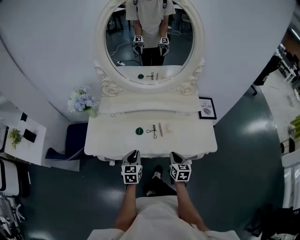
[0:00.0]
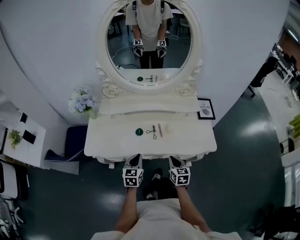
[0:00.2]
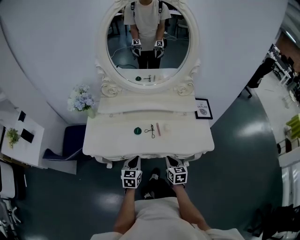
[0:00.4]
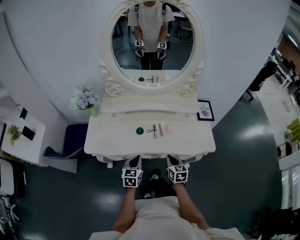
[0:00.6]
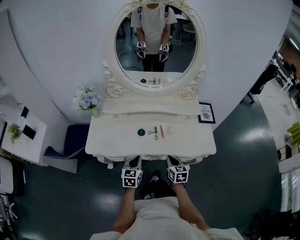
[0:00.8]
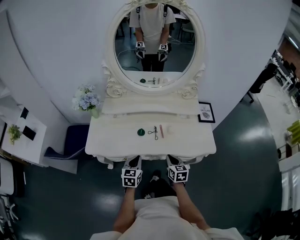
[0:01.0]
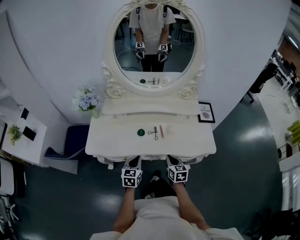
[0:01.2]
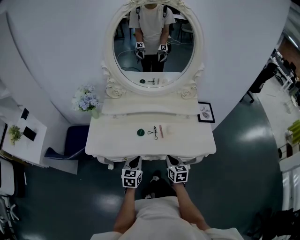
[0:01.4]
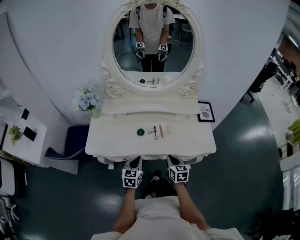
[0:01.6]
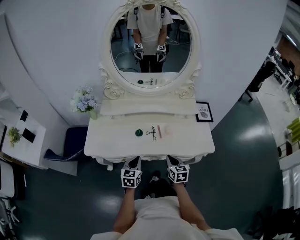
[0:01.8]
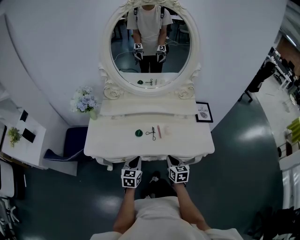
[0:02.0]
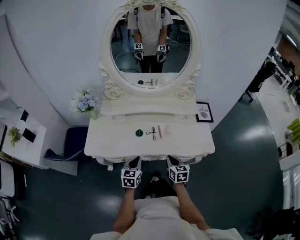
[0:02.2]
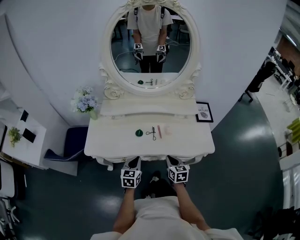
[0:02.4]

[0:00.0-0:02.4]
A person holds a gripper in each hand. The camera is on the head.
0.0 to 2.4 s: There are only small adjustments of the grippers.

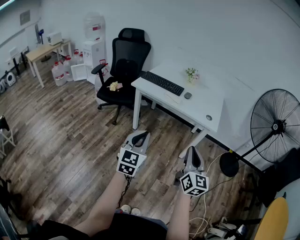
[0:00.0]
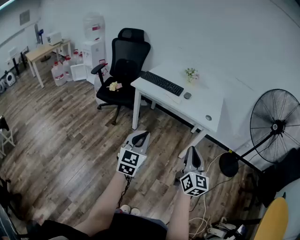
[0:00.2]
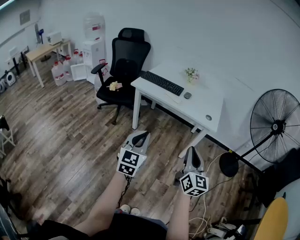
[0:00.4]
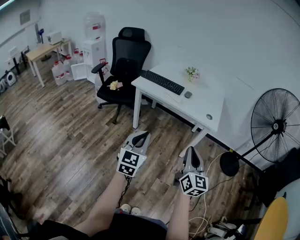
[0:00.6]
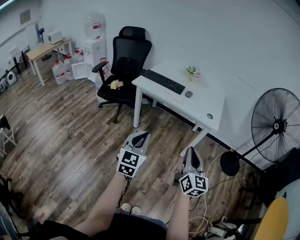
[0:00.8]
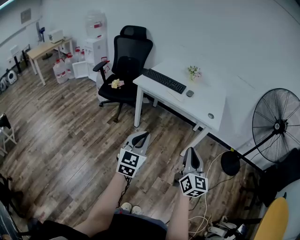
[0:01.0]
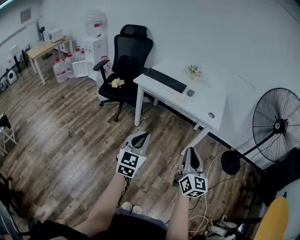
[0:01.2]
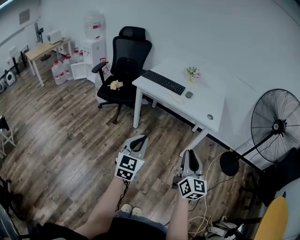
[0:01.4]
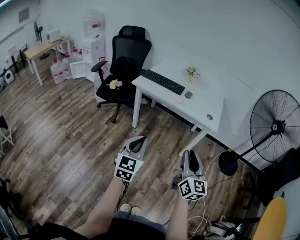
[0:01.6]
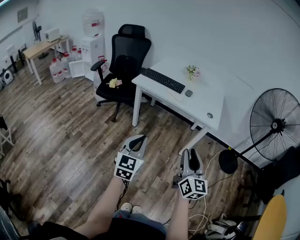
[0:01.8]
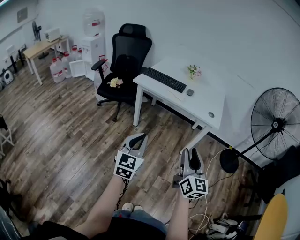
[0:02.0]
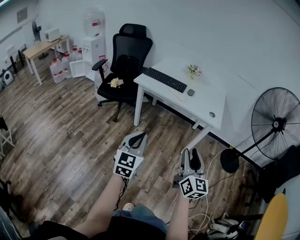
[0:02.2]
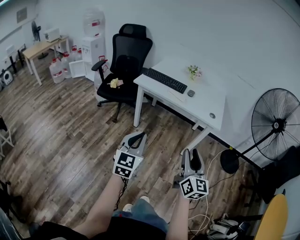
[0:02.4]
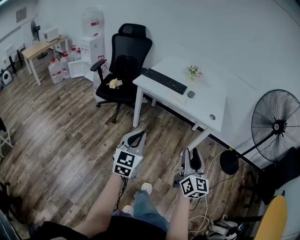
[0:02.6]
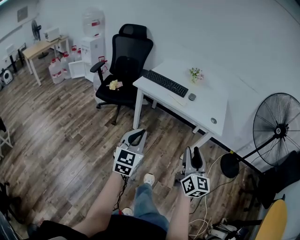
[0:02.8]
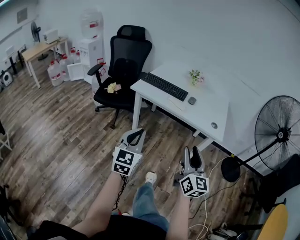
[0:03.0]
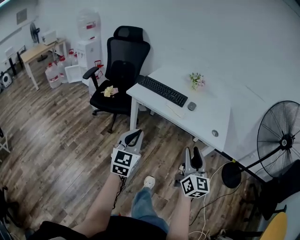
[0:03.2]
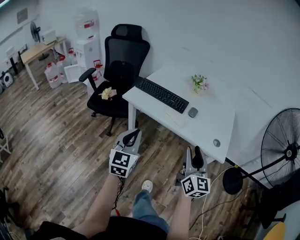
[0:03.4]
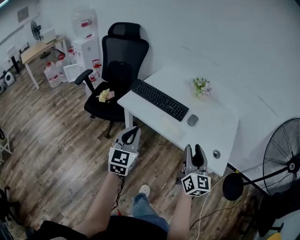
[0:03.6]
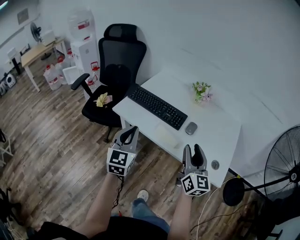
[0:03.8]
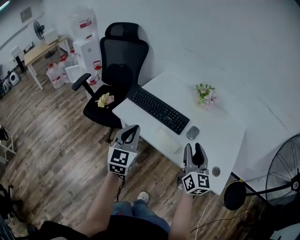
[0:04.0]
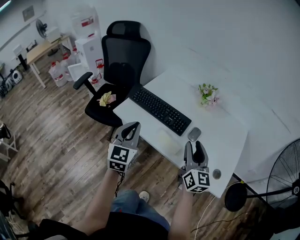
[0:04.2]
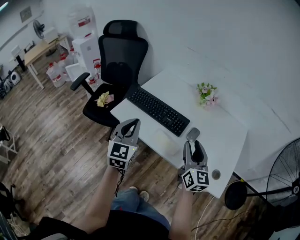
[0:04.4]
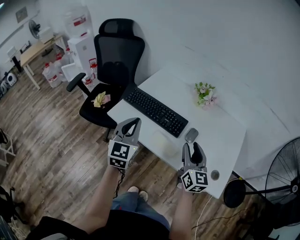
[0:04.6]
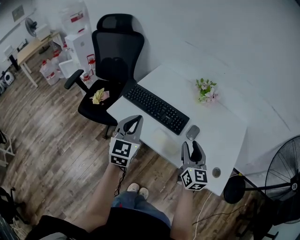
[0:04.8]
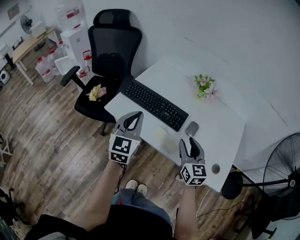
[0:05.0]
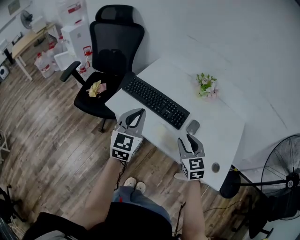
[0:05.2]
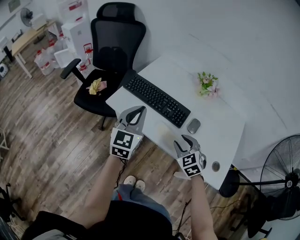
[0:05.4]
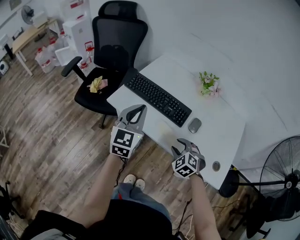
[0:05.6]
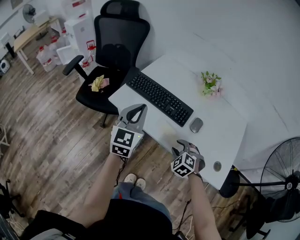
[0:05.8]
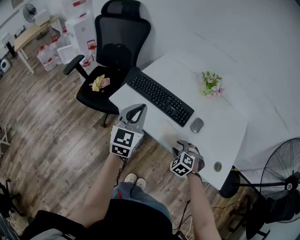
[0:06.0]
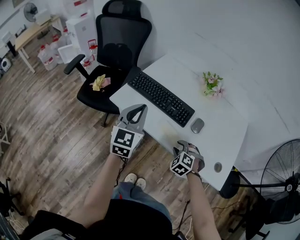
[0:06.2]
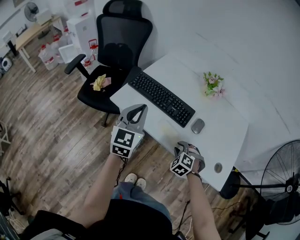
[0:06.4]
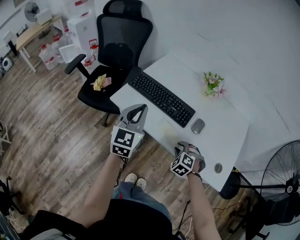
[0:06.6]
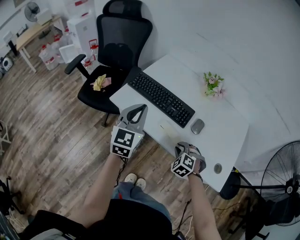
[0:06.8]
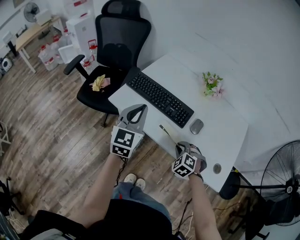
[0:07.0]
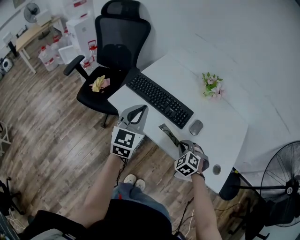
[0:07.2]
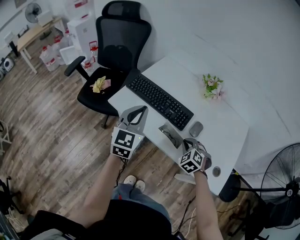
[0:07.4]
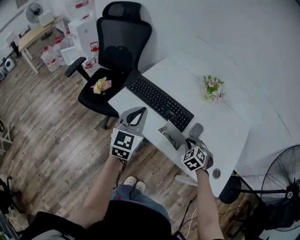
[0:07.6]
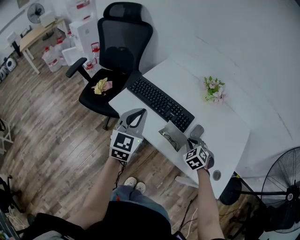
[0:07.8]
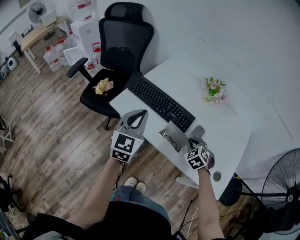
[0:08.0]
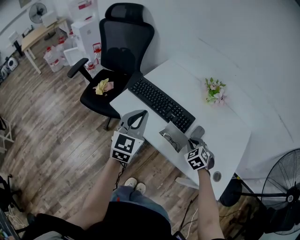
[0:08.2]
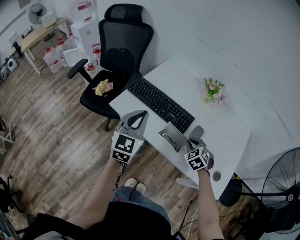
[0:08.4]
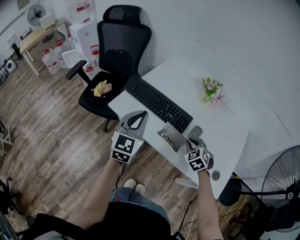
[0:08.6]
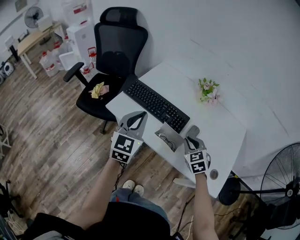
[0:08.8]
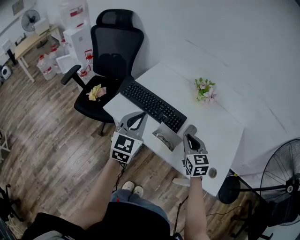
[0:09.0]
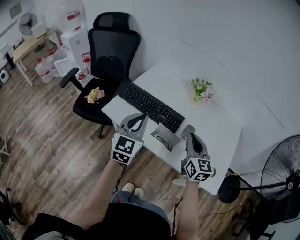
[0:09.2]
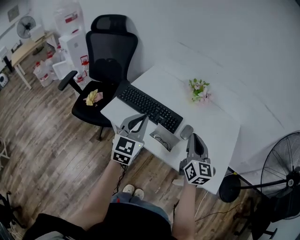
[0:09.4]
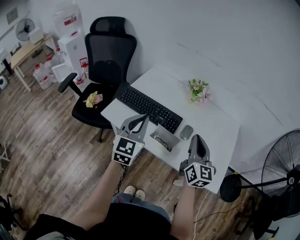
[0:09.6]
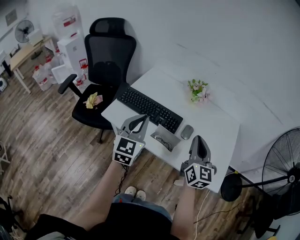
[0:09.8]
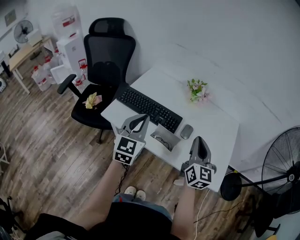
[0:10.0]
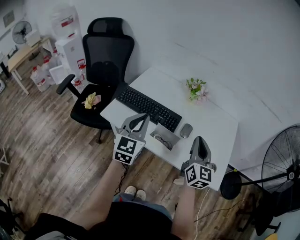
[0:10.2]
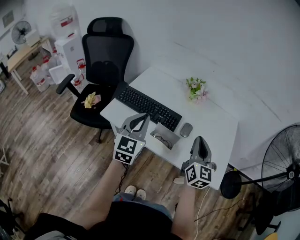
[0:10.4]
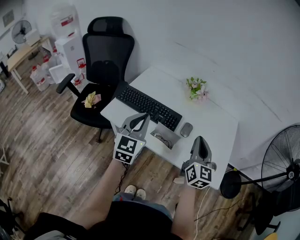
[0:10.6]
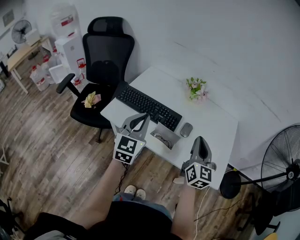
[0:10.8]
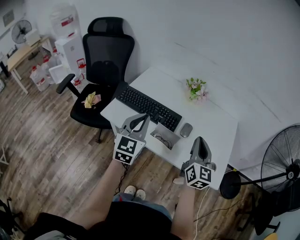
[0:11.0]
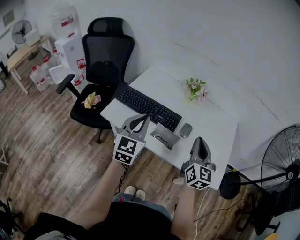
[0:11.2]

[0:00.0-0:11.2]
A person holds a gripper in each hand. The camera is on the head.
0.0 to 1.6 s: The grippers move only a little.
1.6 to 3.2 s: Both grippers move forward, approximately 20 cm.
3.2 to 4.8 s: Both grippers are carried forward, roughly 40 cm.
4.8 to 6.4 s: The right gripper goes approximately 20 cm downward, and angles its fingers downward, by approximately 50 degrees.
6.4 to 8.0 s: The right gripper is displaced forward and to the right by about 10 cm, and closes.
8.0 to 9.6 s: The right gripper shifts about 20 cm upward, and tips its fingers upward by some 50 degrees, while the left gripper ends up roughly 5 cm from where it was.
9.6 to 11.2 s: The grippers make only small movements.

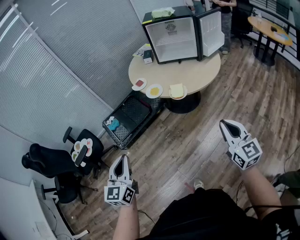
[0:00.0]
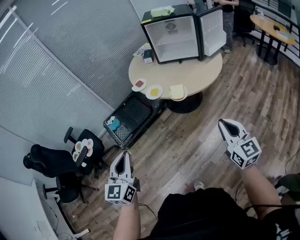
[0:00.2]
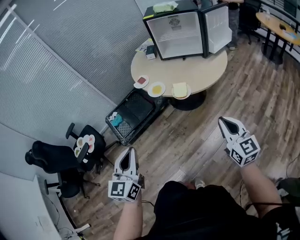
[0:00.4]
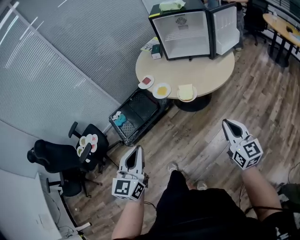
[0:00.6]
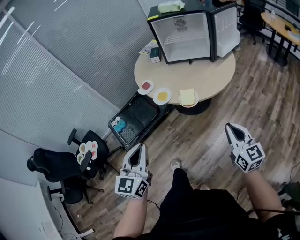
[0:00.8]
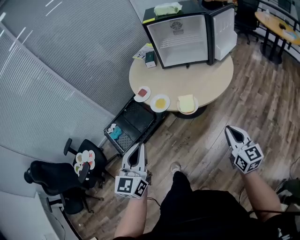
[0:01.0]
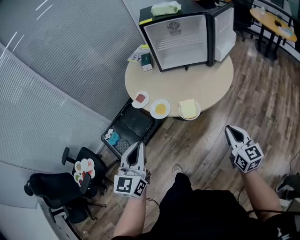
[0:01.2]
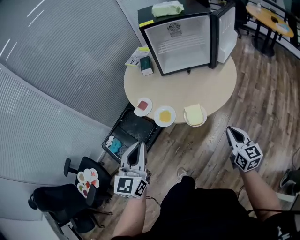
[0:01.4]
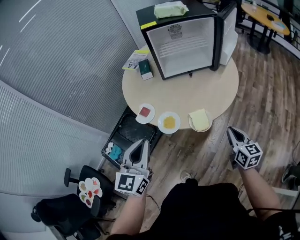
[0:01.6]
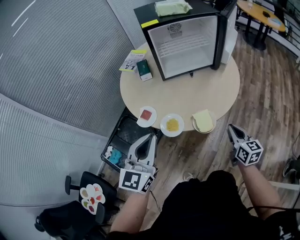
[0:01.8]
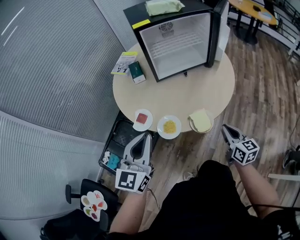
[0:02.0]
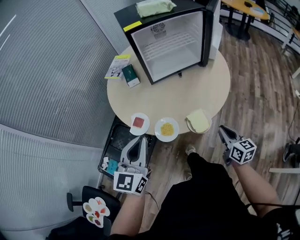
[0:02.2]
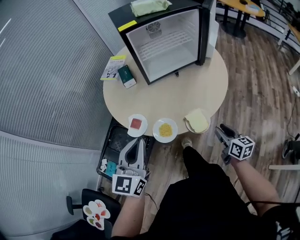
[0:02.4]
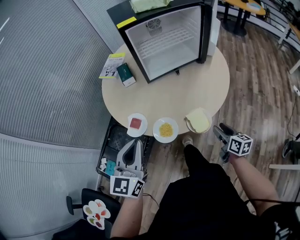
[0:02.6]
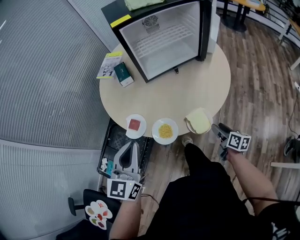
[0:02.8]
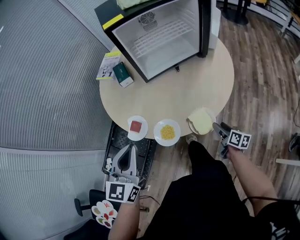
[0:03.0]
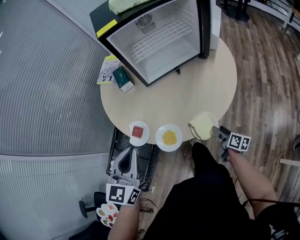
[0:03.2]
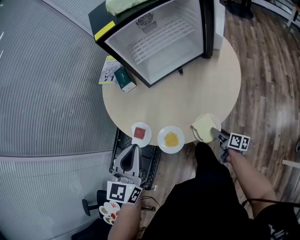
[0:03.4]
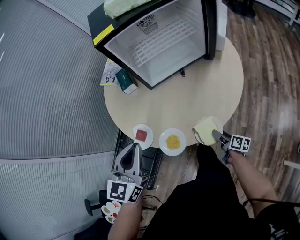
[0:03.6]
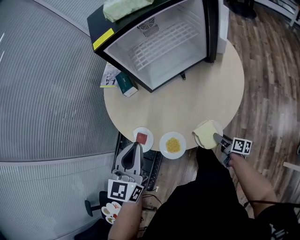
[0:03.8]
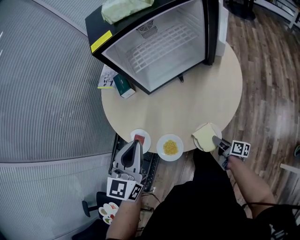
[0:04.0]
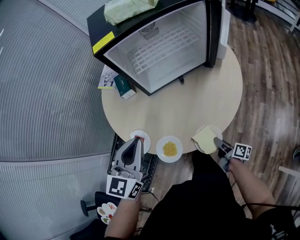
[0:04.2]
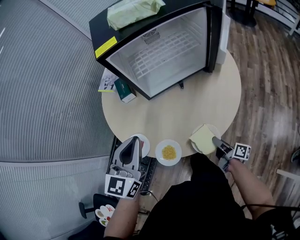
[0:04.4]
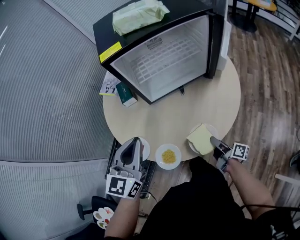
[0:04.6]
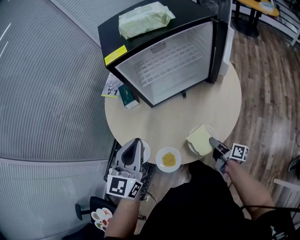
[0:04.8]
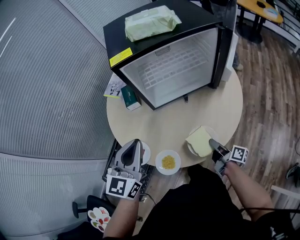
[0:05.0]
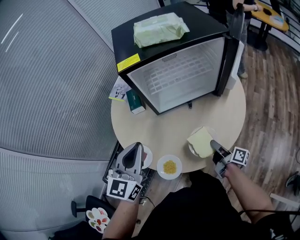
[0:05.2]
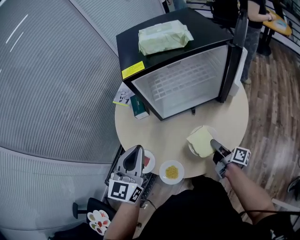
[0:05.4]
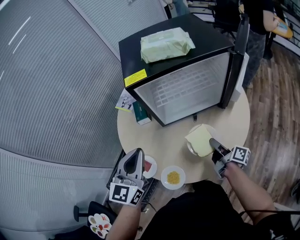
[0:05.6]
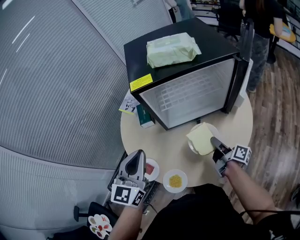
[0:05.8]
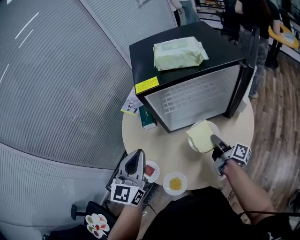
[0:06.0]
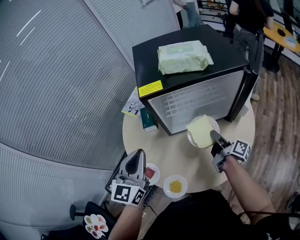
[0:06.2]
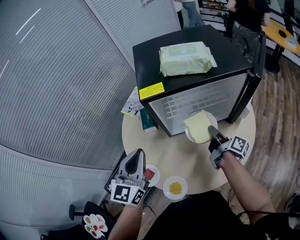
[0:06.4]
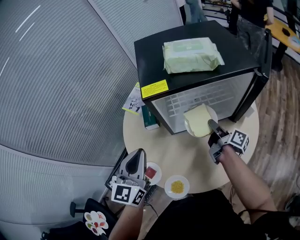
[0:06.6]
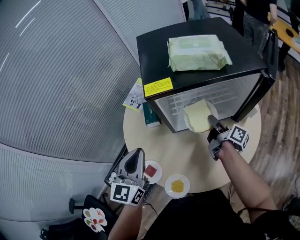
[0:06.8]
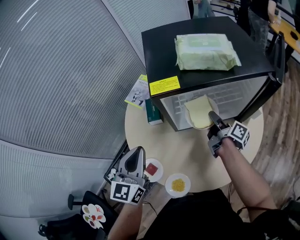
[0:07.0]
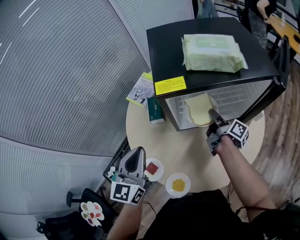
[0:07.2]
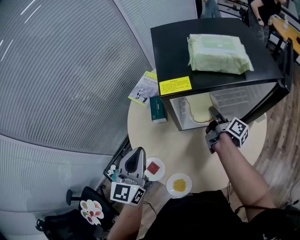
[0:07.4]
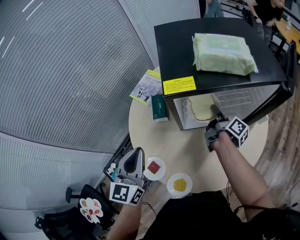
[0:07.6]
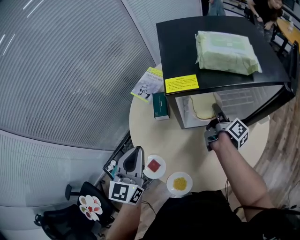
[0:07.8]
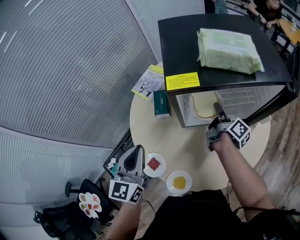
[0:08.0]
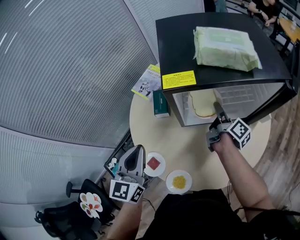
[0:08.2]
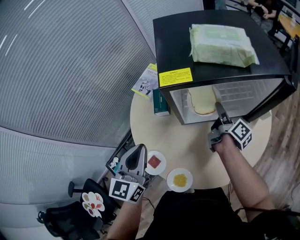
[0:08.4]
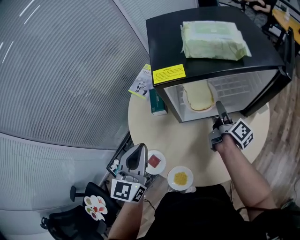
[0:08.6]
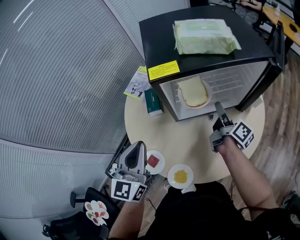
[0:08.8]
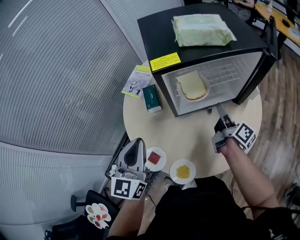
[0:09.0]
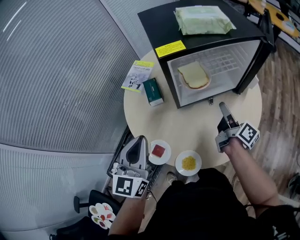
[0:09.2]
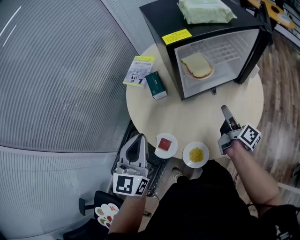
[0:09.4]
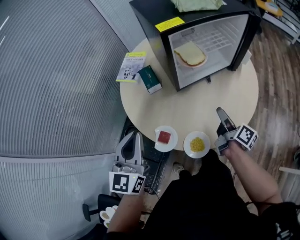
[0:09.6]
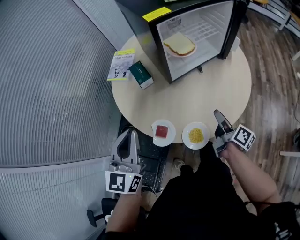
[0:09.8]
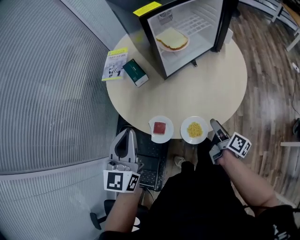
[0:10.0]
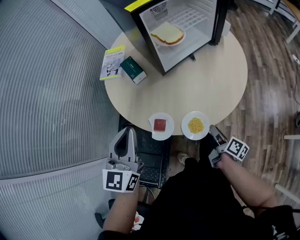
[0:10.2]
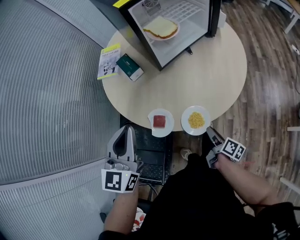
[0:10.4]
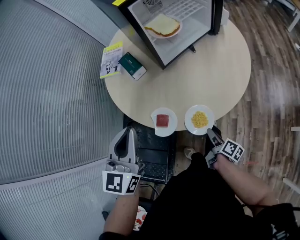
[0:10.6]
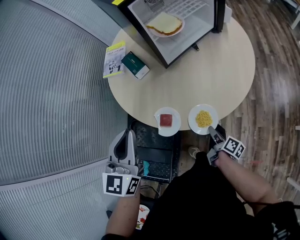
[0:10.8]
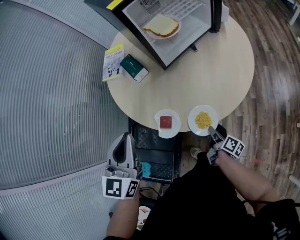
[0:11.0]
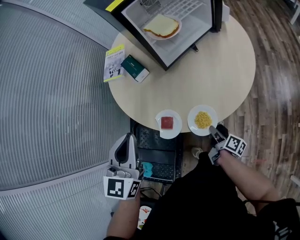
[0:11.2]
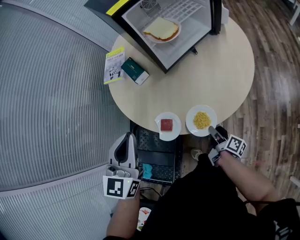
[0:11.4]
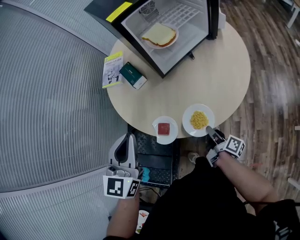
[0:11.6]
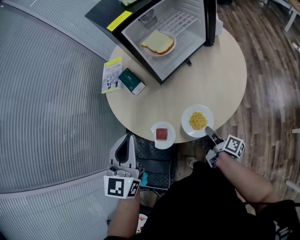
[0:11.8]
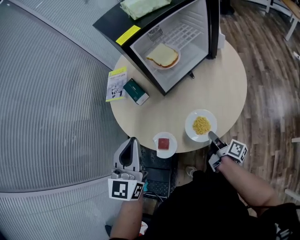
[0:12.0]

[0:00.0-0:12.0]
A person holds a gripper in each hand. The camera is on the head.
0.0 to 1.6 s: The grippers both shift forward by about 40 cm. The right gripper turns by roughly 30 degrees. Meanwhile the left gripper rotates some 30 degrees.
1.6 to 3.0 s: The right gripper shifts roughly 20 cm downward and forward, rotates around the line of its fingers by some 40 degrees, clockwise from behind, and opens up. The left gripper heads forward, downward and to the left, covering about 15 cm.
3.0 to 4.4 s: The left gripper shifts approximately 15 cm forward and to the right, while the right gripper moves forward, roughly 5 cm, swivels approximately 30 degrees, and closes.
4.4 to 6.0 s: The left gripper moves forward and upward, about 10 cm. Meanwhile the right gripper heads forward and upward, covering some 25 cm.
6.0 to 7.6 s: The right gripper heads forward and to the left, covering approximately 20 cm; the left gripper travels to the left by approximately 5 cm.
7.6 to 9.0 s: The right gripper shifts roughly 10 cm backward.
9.0 to 10.4 s: The left gripper heads backward and to the left, covering some 15 cm, and rotates some 20 degrees, while the right gripper moves backward and downward, about 40 cm, and rotates approximately 30 degrees.
10.4 to 12.0 s: The right gripper goes about 10 cm forward and upward, and closes its fingers. Meanwhile the left gripper ends up some 5 cm from where it was.
